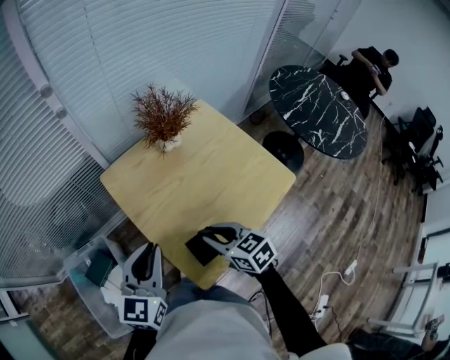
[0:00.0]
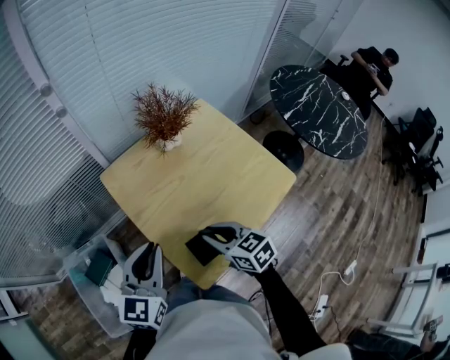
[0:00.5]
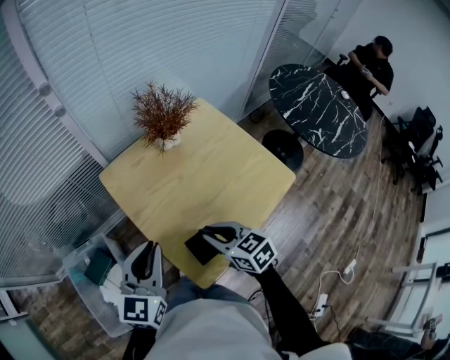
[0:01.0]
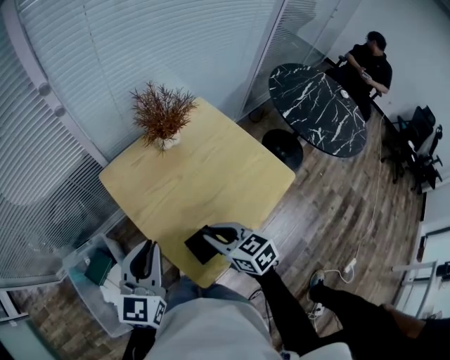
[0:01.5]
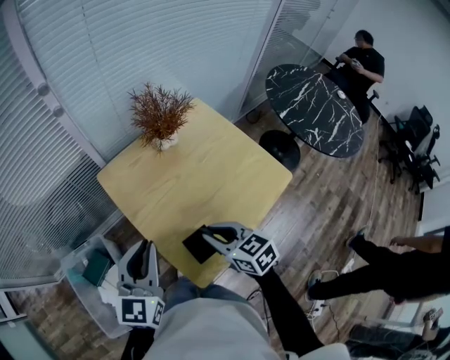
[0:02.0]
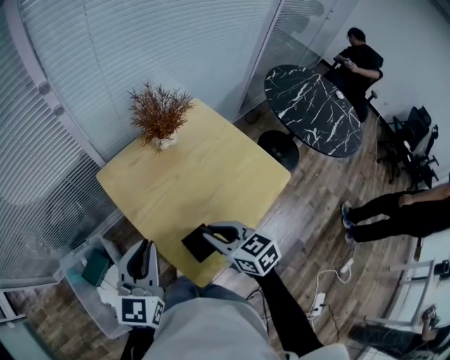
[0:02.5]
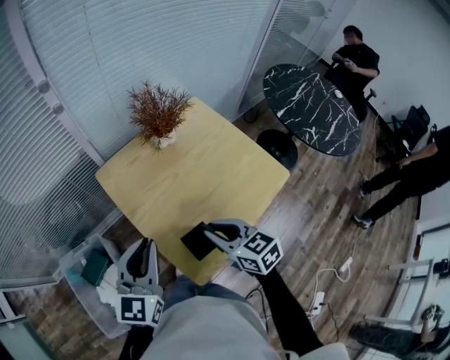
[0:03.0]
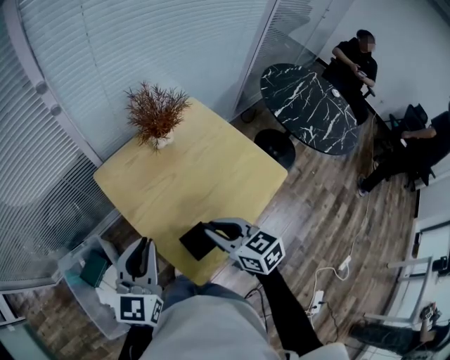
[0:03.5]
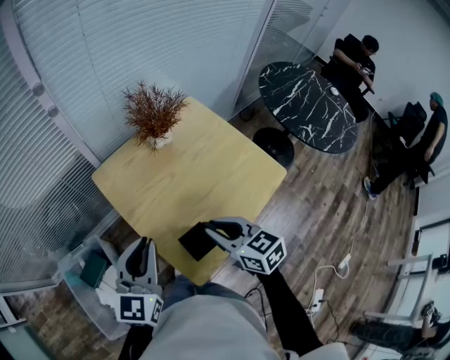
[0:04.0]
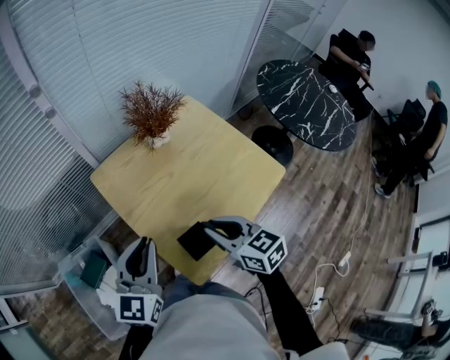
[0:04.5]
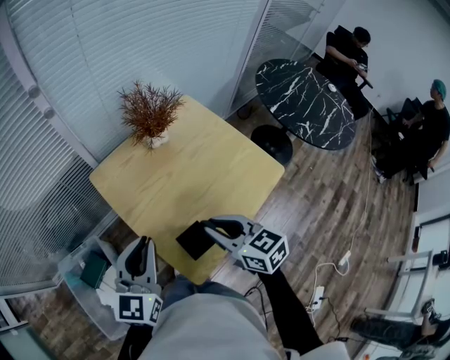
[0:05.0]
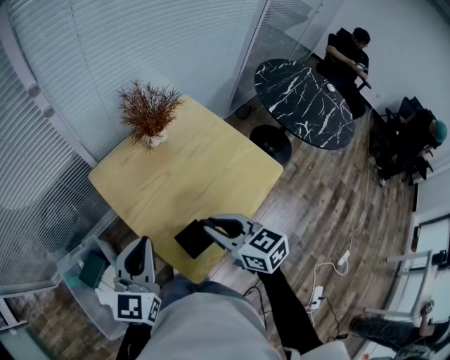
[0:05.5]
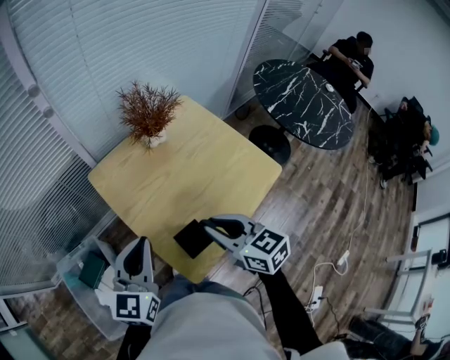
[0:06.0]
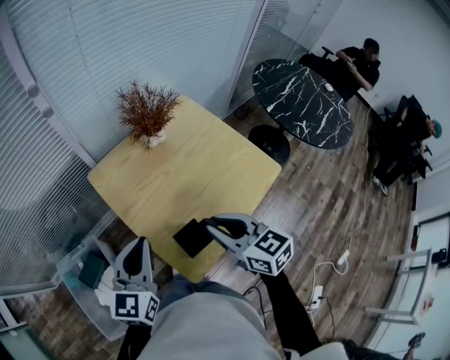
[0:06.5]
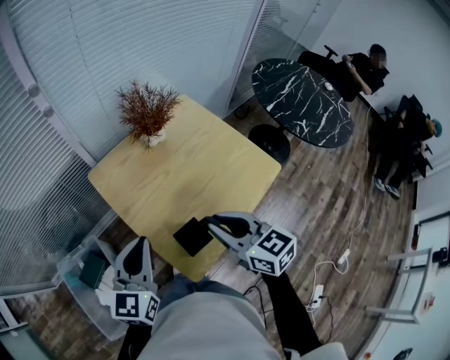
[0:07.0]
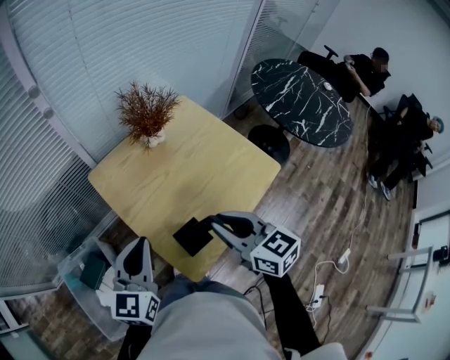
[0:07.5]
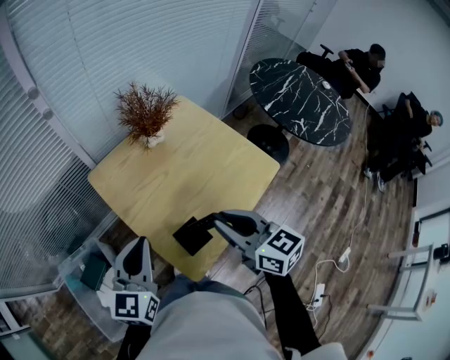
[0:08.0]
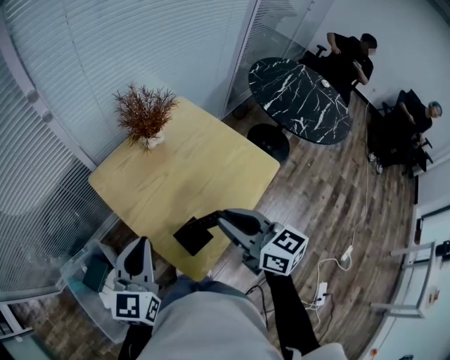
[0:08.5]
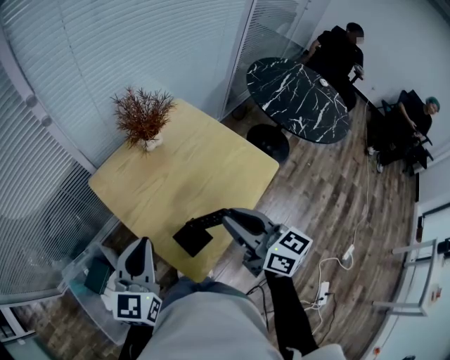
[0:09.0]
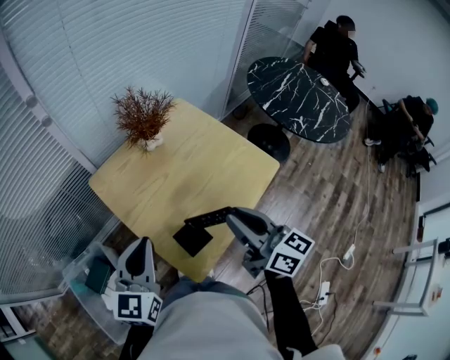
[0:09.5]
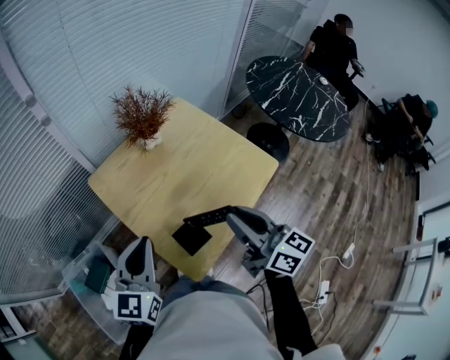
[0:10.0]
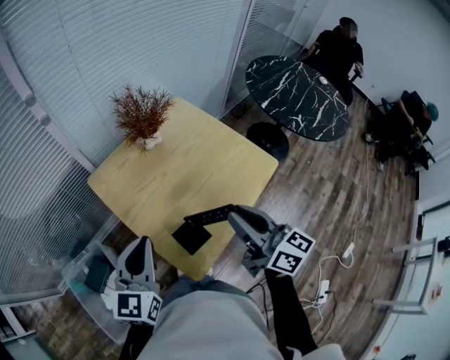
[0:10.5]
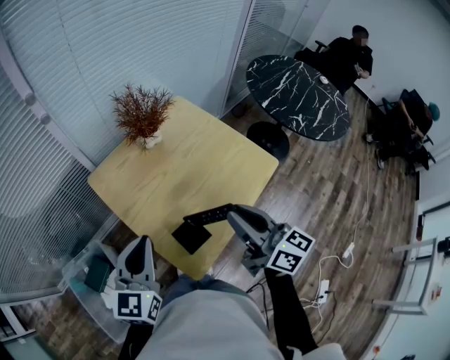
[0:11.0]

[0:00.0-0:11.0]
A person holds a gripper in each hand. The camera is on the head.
0:00.0 to 0:03.5: There are only small adjustments of the grippers.
0:03.5 to 0:05.5: There are only small adjustments of the grippers.
0:05.5 to 0:07.5: The grippers stay close to where they were, moving slightly.
0:07.5 to 0:09.0: There are only small adjustments of the grippers.
0:09.0 to 0:11.0: The grippers stay close to where they were, moving slightly.

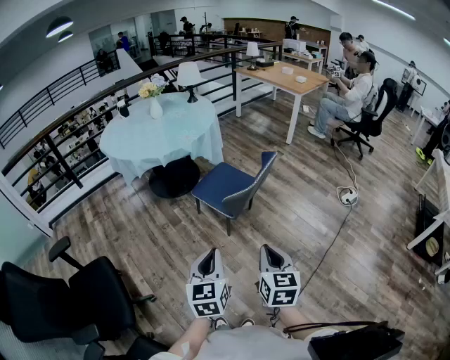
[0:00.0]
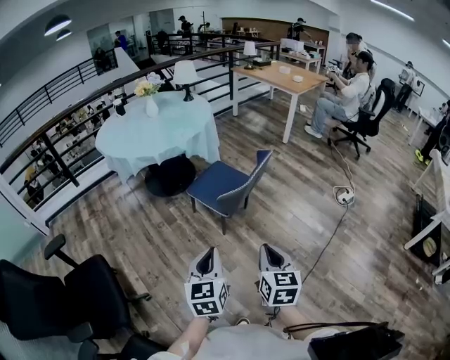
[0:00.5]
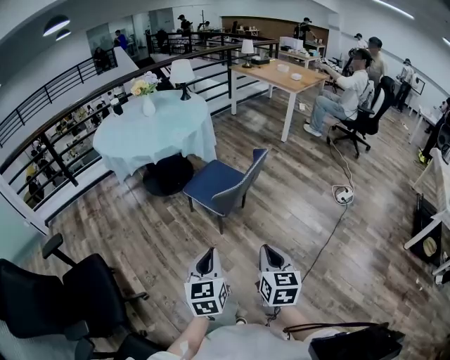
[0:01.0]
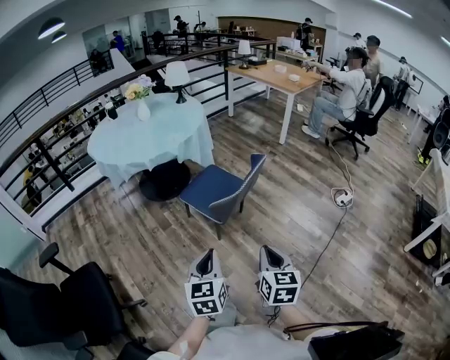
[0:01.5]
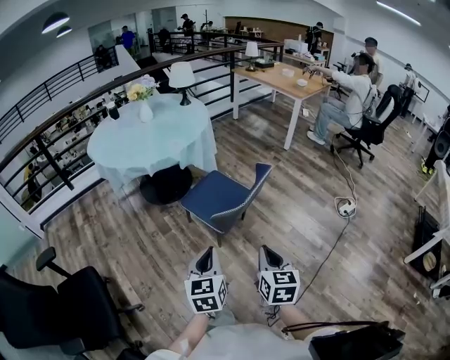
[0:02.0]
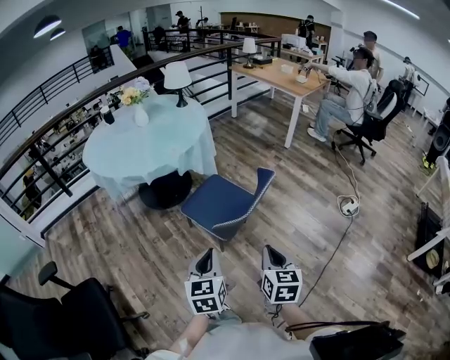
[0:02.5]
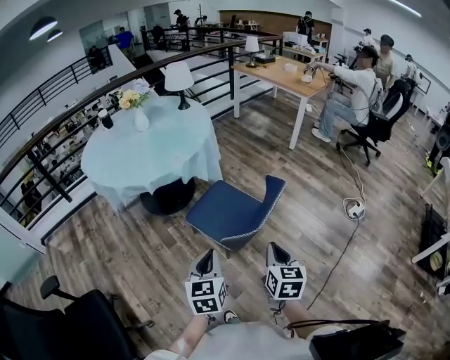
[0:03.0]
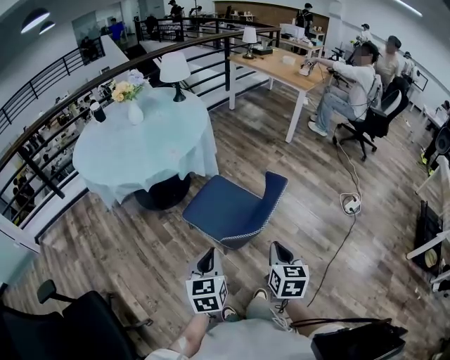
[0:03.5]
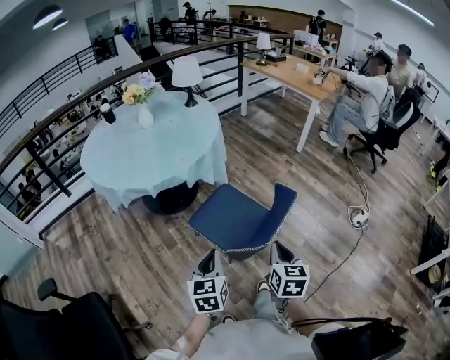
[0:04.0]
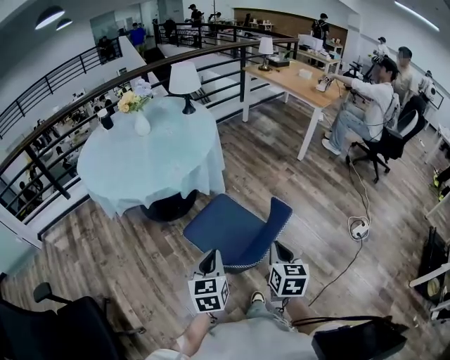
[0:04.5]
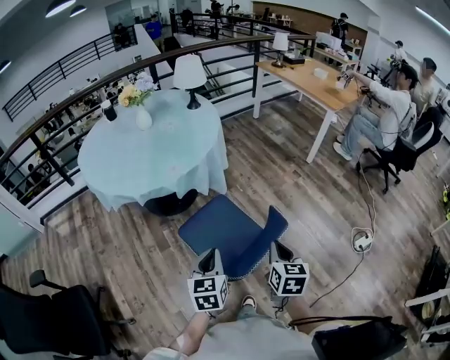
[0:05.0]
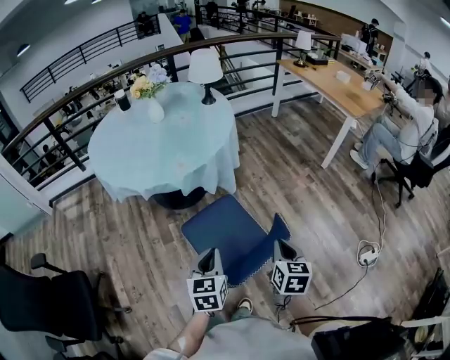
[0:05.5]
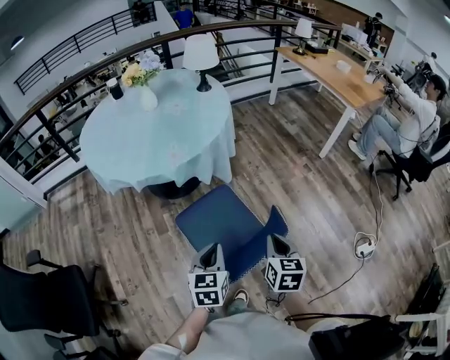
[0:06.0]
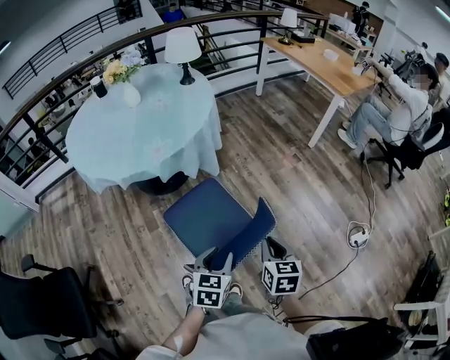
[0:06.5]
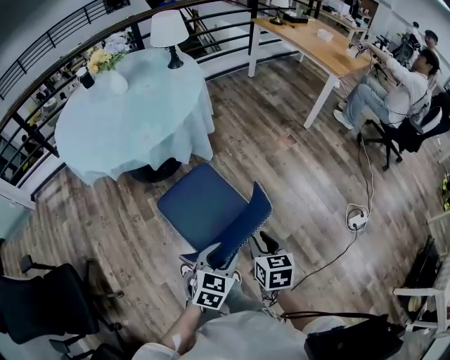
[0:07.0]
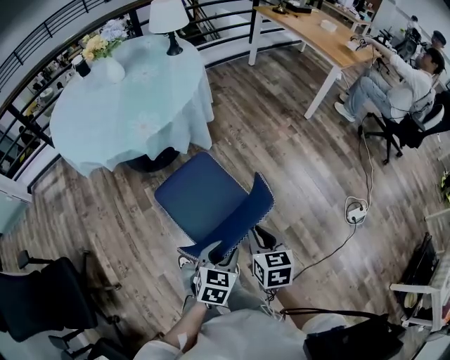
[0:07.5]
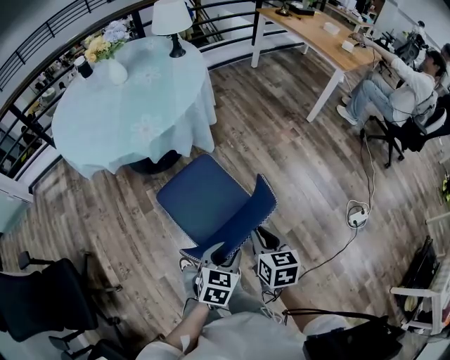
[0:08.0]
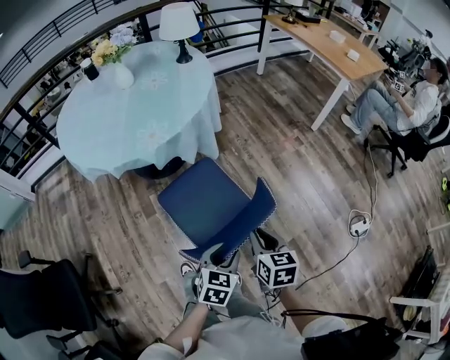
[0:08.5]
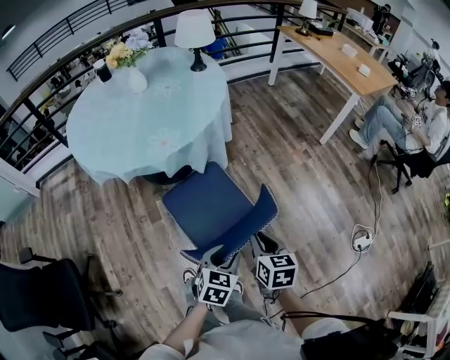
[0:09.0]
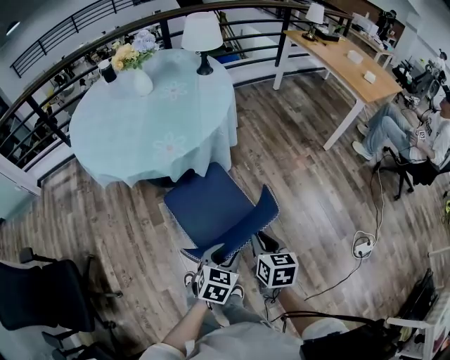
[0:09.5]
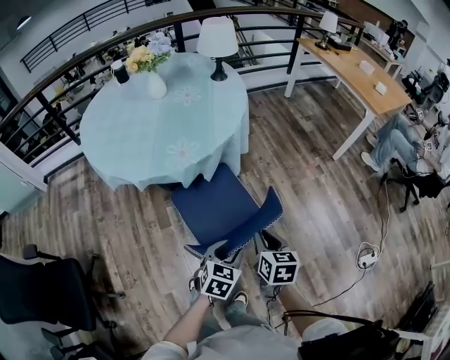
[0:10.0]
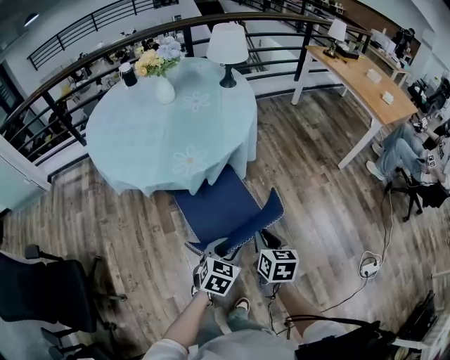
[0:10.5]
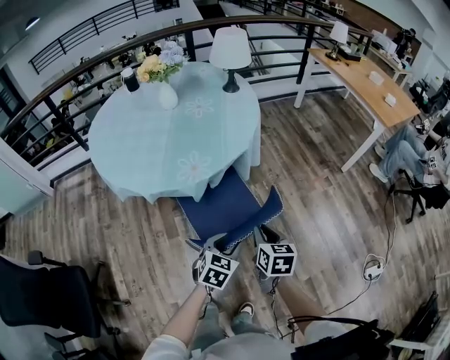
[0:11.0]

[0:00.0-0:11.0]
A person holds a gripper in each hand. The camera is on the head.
0:00.0 to 0:02.0: The left gripper travels forward by roughly 10 cm; the right gripper heads forward and to the right, covering roughly 15 cm.
0:02.0 to 0:03.5: Both grippers move forward, about 15 cm.
0:03.5 to 0:05.5: Both grippers travel together forward and to the right, roughly 25 cm.
0:05.5 to 0:07.5: The right gripper goes some 5 cm downward; the left gripper shifts approximately 15 cm to the right and downward, swivels some 30 degrees, and opens its fingers.
0:07.5 to 0:09.0: Both grippers move forward, about 5 cm.
0:09.0 to 0:11.0: The two grippers go some 15 cm forward and to the left.

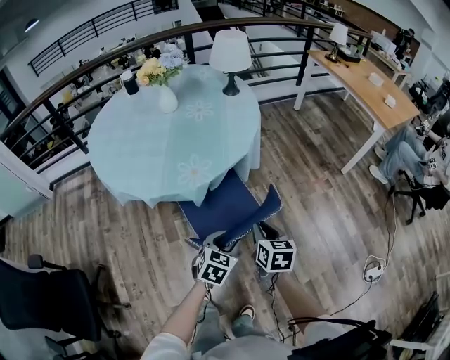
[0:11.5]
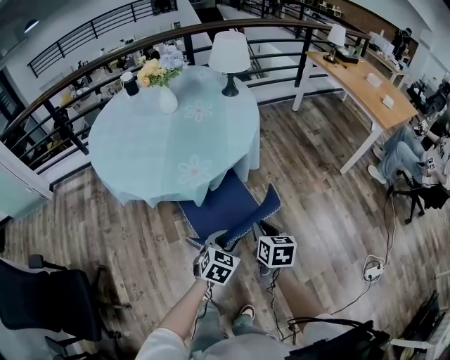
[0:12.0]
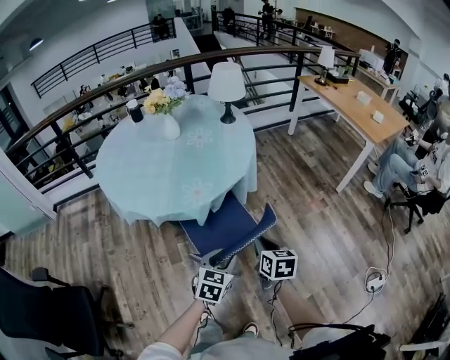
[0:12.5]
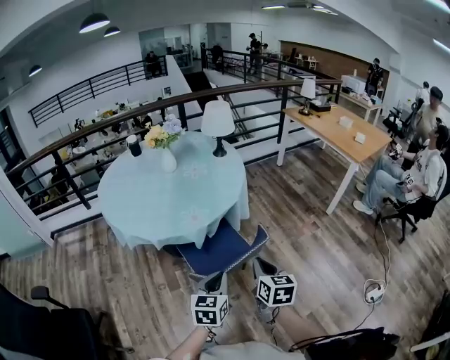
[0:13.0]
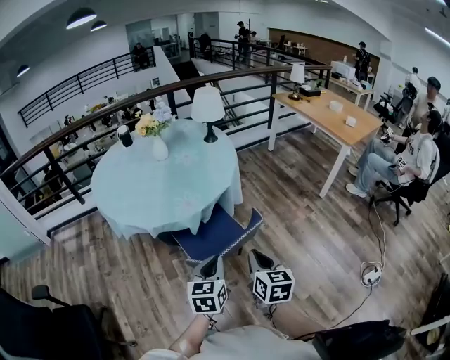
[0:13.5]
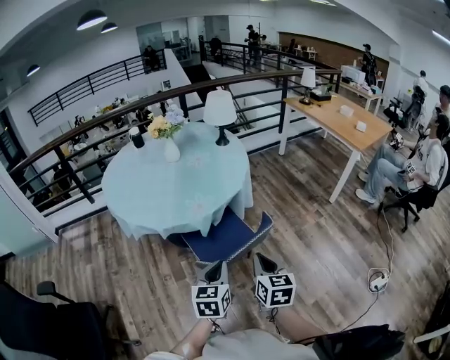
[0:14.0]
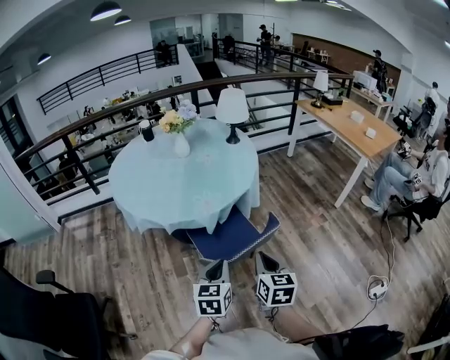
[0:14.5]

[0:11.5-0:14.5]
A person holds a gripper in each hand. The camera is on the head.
0:11.5 to 0:13.0: Both grippers move upward and backward, approximately 15 cm. The left gripper rotates about 20 degrees, and closes up.
0:13.0 to 0:14.5: The right gripper ends up about 5 cm from where it was.

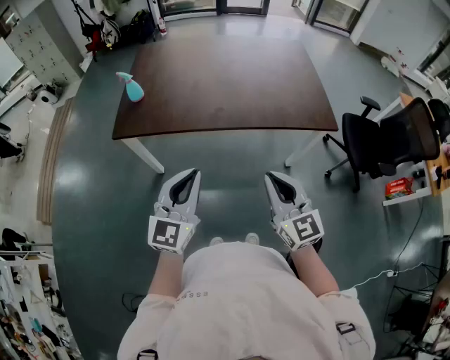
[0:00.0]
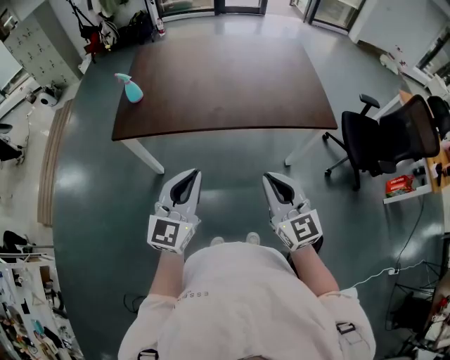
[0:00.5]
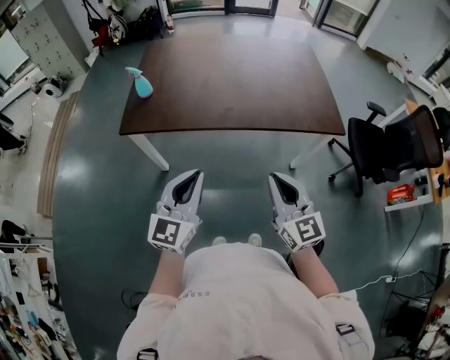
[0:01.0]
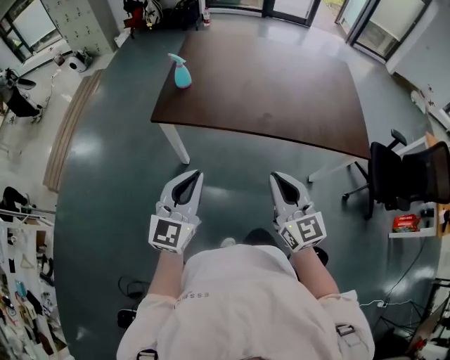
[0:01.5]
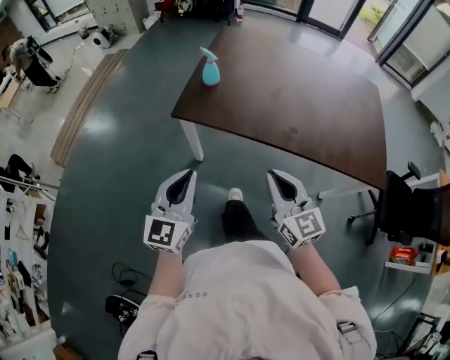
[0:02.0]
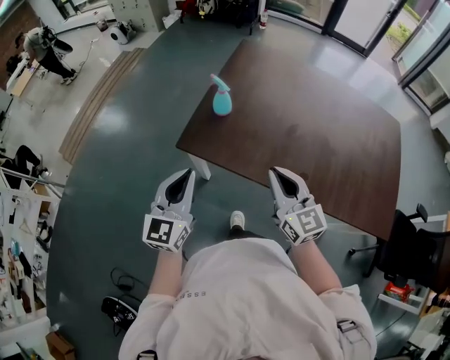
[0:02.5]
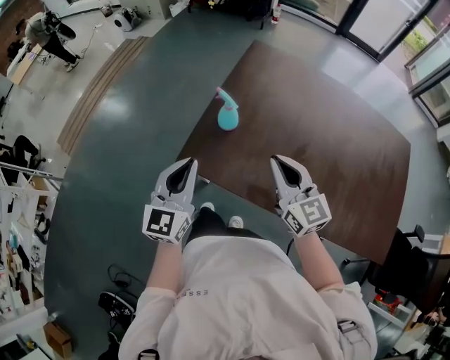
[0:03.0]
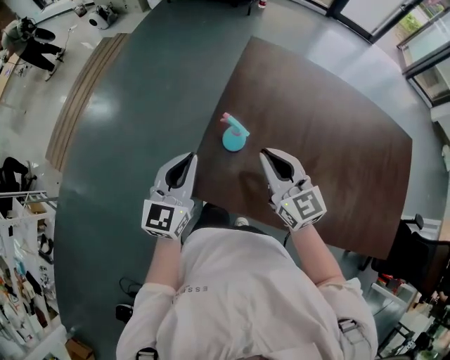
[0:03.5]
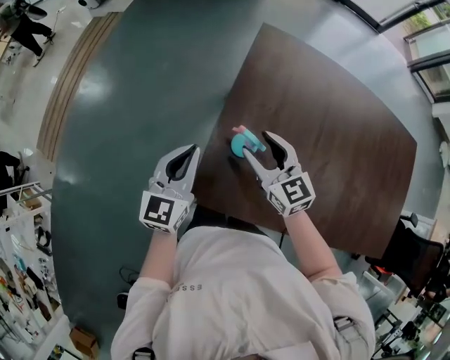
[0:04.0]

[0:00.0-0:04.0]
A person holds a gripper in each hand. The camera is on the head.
0:00.0 to 0:02.0: The right gripper travels to the left and forward by approximately 20 cm, and swivels about 20 degrees. The left gripper travels to the left by approximately 20 cm, and changes its angle by roughly 20 degrees.
0:02.0 to 0:04.0: The pair of grippers is taken forward, approximately 50 cm. The right gripper opens its fingers.
